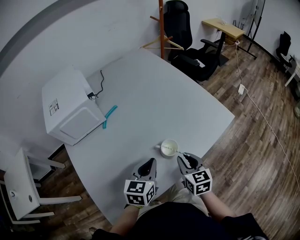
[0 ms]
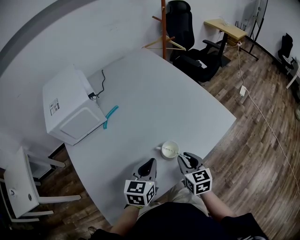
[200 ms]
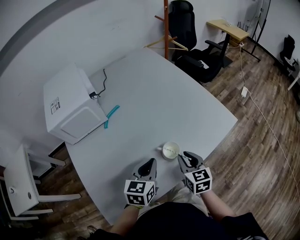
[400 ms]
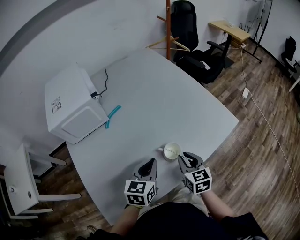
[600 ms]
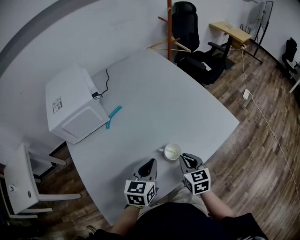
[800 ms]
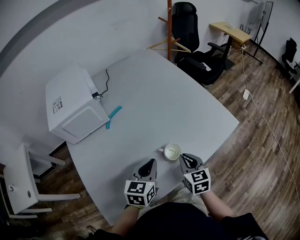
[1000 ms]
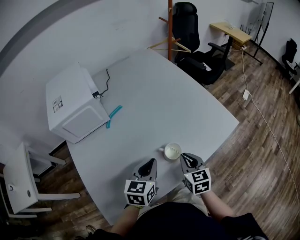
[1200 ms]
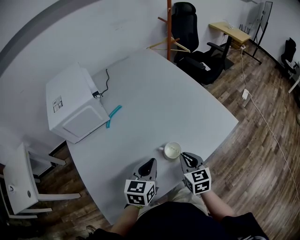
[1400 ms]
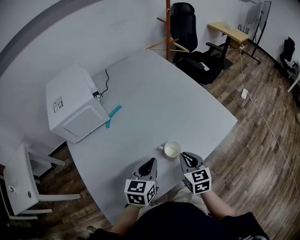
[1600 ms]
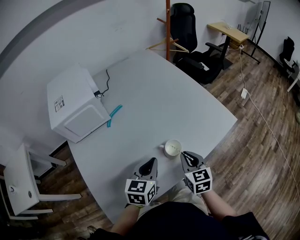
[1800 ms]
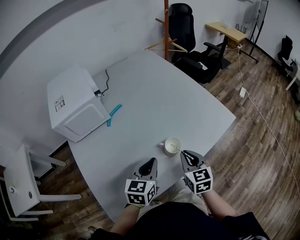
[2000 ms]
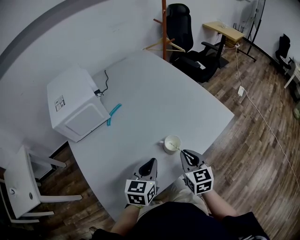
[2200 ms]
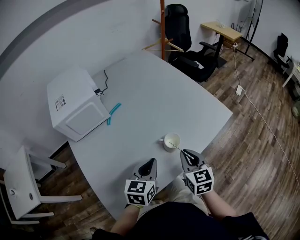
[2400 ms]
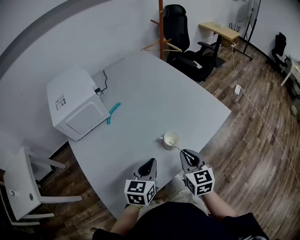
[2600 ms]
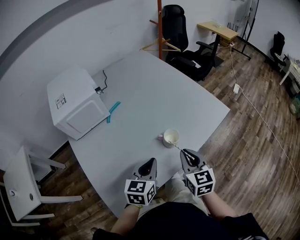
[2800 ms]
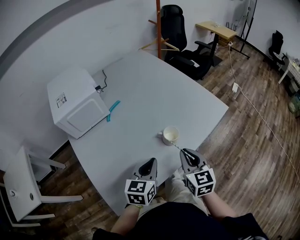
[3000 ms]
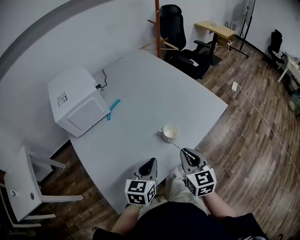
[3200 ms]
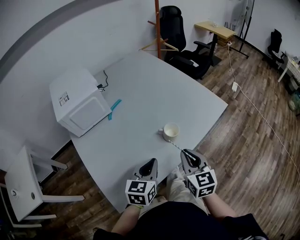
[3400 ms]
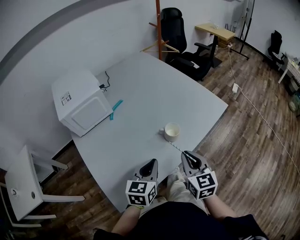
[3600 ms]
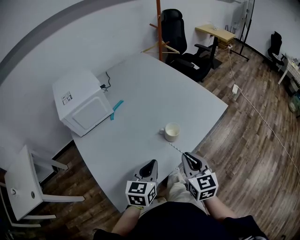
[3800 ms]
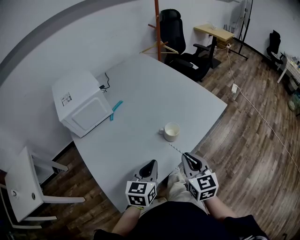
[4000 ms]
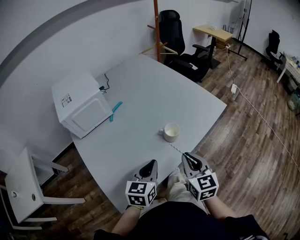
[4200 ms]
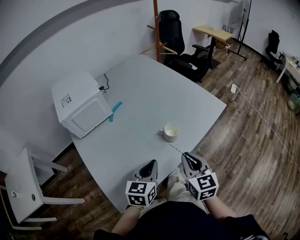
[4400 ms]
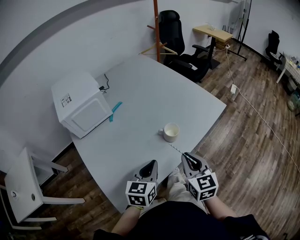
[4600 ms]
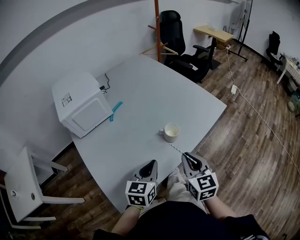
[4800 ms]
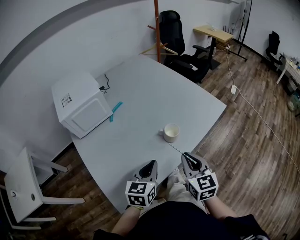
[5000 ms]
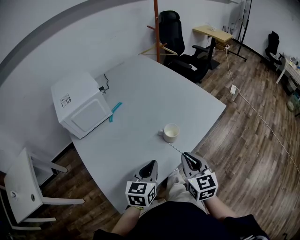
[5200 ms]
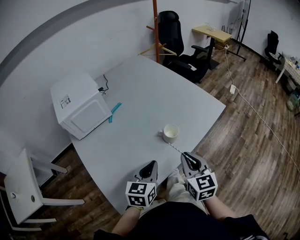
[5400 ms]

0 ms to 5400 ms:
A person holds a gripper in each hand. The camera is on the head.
0 ms to 1400 ms: The grippers move only a little.
1400 ms to 2800 ms: The left gripper shifts approximately 5 cm backward. Meanwhile the right gripper shifts approximately 10 cm backward and upward.
2800 ms to 4000 ms: Both grippers move backward, some 5 cm.
4000 ms to 5400 ms: The two grippers keep their place.

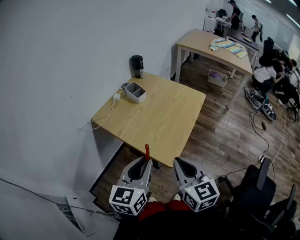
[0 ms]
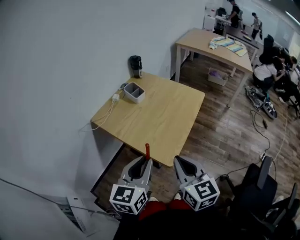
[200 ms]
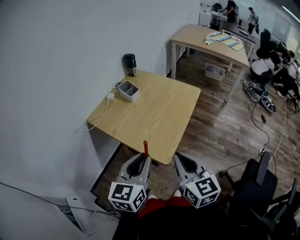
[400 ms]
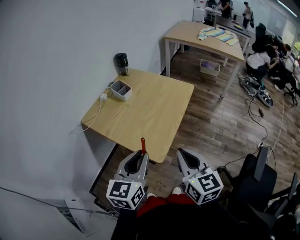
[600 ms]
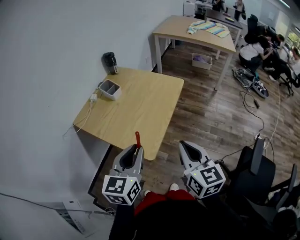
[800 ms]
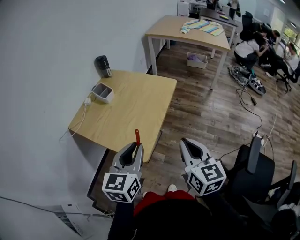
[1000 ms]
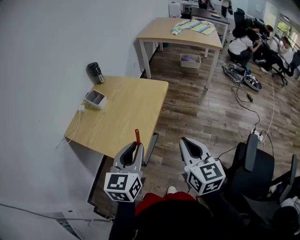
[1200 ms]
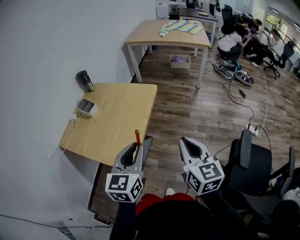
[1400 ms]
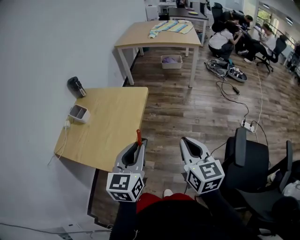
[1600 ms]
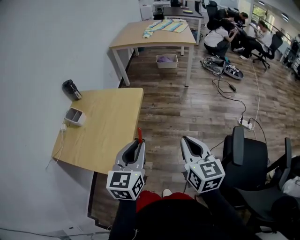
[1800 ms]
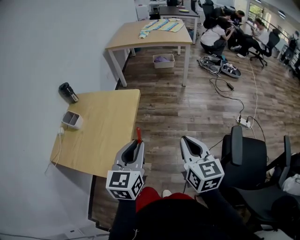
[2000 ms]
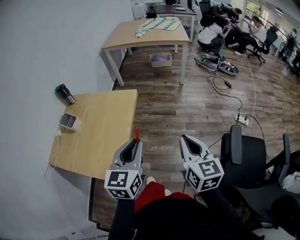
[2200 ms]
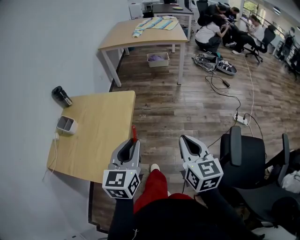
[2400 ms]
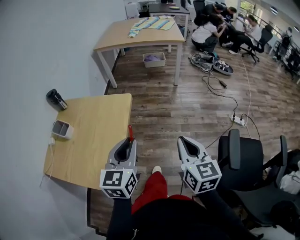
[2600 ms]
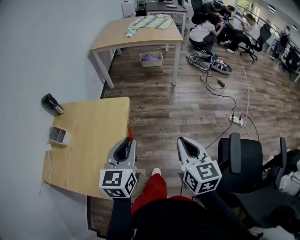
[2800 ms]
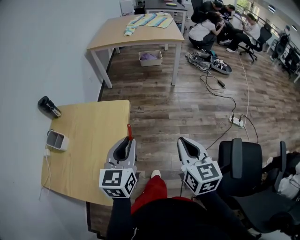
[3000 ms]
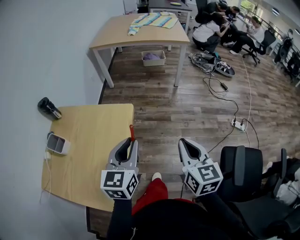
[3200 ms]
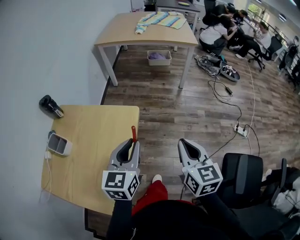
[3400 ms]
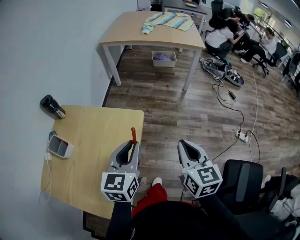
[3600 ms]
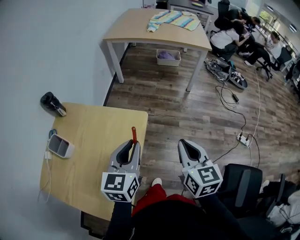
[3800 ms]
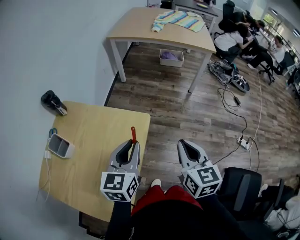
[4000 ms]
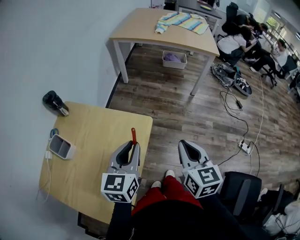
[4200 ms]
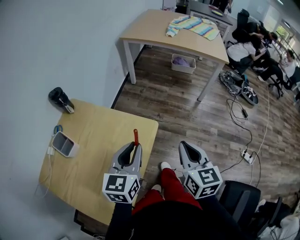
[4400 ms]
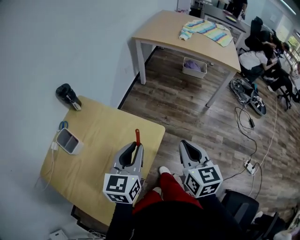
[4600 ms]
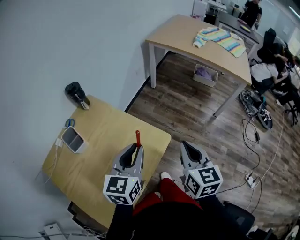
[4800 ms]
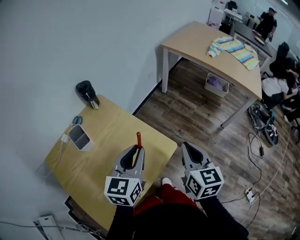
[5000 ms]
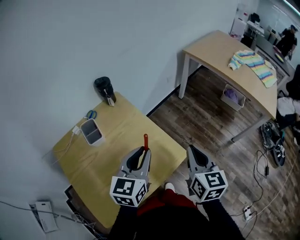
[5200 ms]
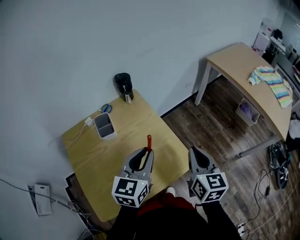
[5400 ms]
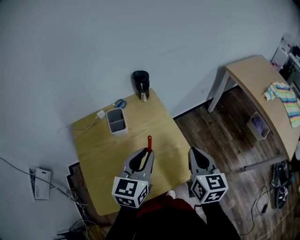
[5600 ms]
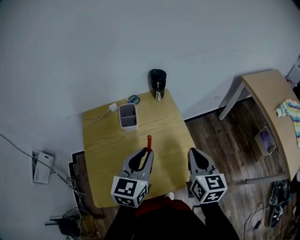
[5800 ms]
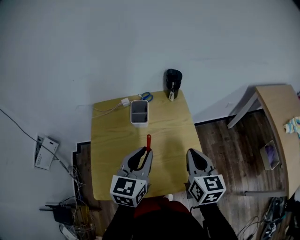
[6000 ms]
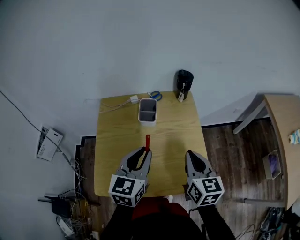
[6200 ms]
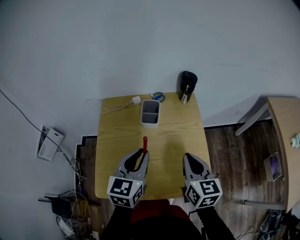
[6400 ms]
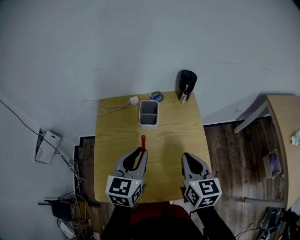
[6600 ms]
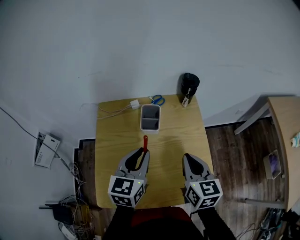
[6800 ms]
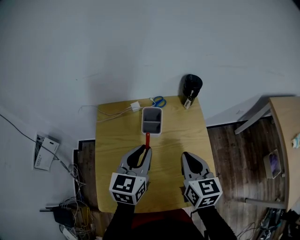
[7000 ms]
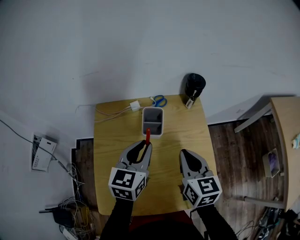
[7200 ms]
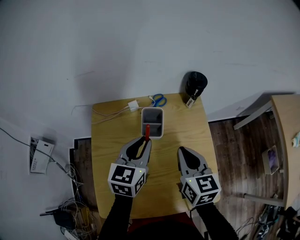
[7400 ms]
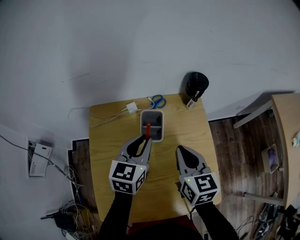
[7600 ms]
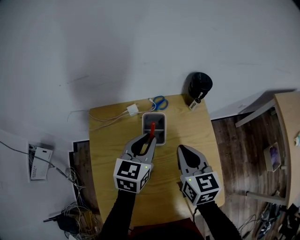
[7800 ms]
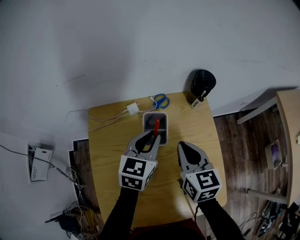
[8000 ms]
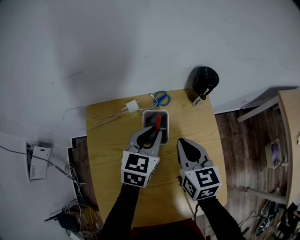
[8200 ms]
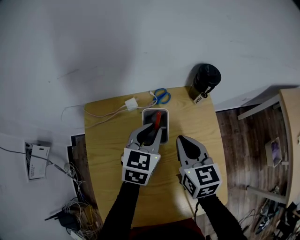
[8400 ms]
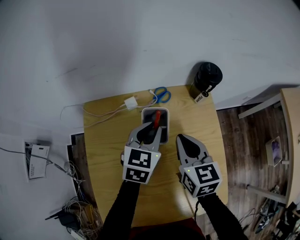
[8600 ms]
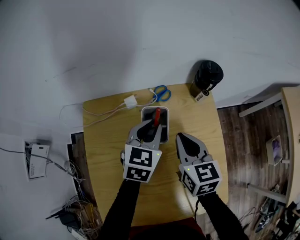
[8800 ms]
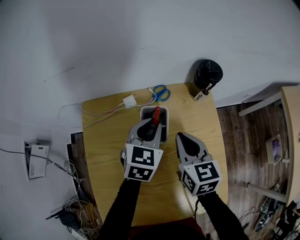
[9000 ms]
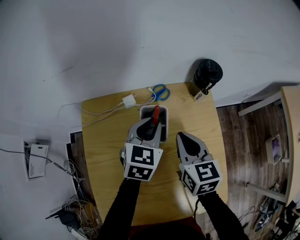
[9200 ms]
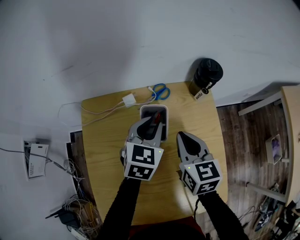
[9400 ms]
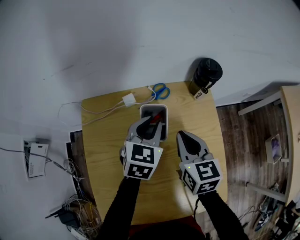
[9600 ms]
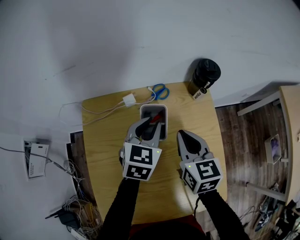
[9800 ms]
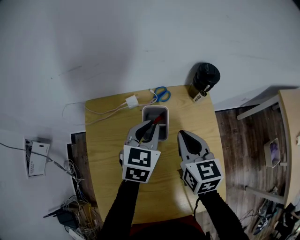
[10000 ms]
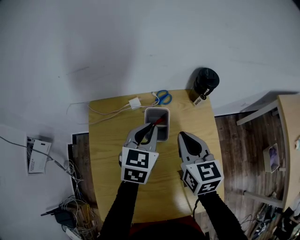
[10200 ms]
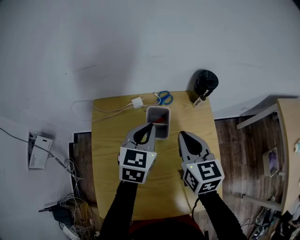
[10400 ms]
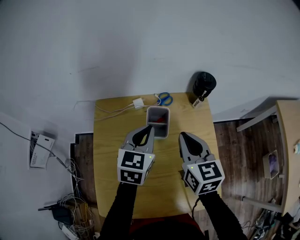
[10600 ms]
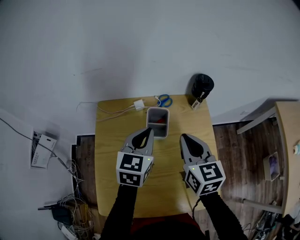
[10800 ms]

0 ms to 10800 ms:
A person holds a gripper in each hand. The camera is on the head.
0 ms to 1600 ms: The two grippers go roughly 25 cm to the right. The right gripper swivels about 30 degrees.
1600 ms to 3000 ms: Both grippers travel together forward, approximately 15 cm.
3000 ms to 4600 ms: The grippers both shift forward and to the left by about 25 cm.
4600 ms to 6200 ms: The right gripper moves about 25 cm, and changes its angle by about 60 degrees. The left gripper changes place by about 20 cm, and rotates approximately 60 degrees.
6200 ms to 7800 ms: The right gripper moves forward and to the left, approximately 20 cm. Meanwhile the left gripper heads forward and downward, covering about 20 cm.
7800 ms to 9200 ms: The left gripper is displaced forward by roughly 5 cm, while the right gripper changes place by roughly 5 cm.
9200 ms to 10800 ms: The left gripper goes some 10 cm upward and backward; the right gripper heads upward, covering some 10 cm.

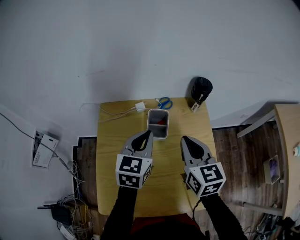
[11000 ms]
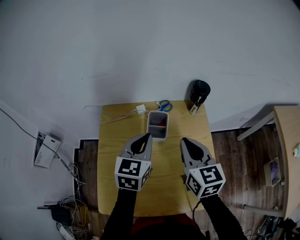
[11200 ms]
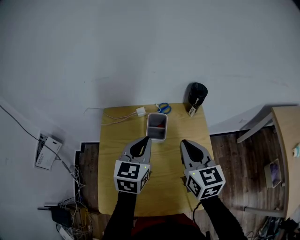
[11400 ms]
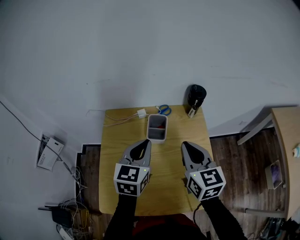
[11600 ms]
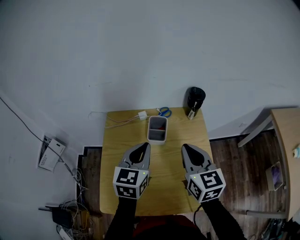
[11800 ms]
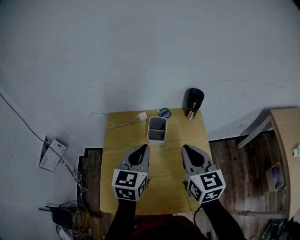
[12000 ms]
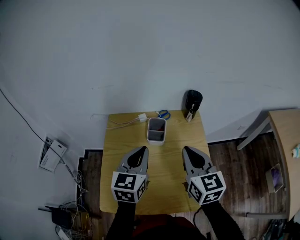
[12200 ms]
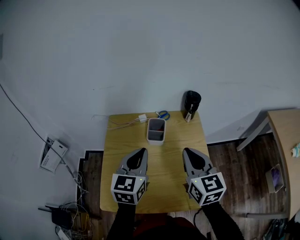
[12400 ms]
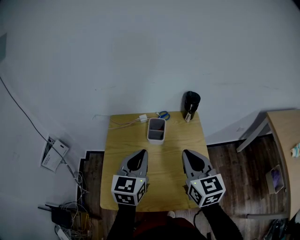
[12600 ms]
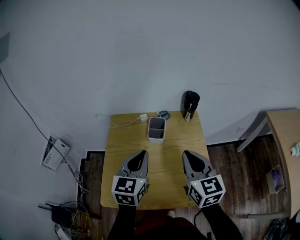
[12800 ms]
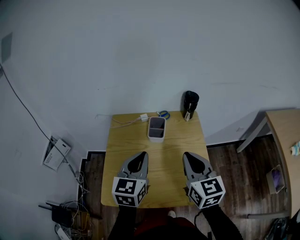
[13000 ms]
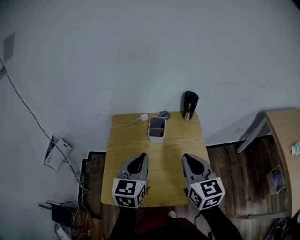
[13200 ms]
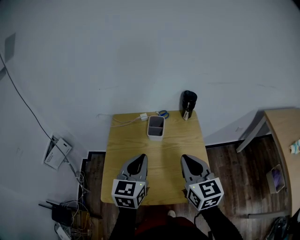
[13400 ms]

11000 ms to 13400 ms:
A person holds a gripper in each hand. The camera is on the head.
11000 ms to 12200 ms: Both grippers move backward and upward, approximately 10 cm.
12200 ms to 13400 ms: Both grippers move backward, roughly 10 cm.

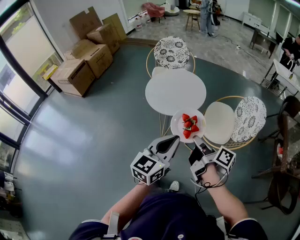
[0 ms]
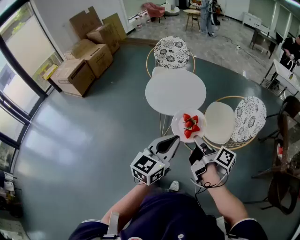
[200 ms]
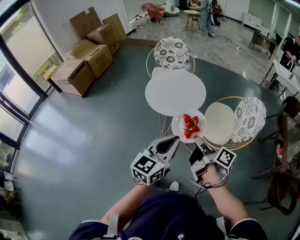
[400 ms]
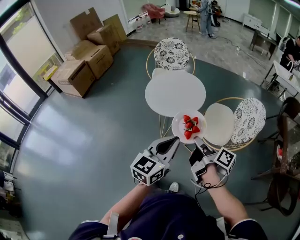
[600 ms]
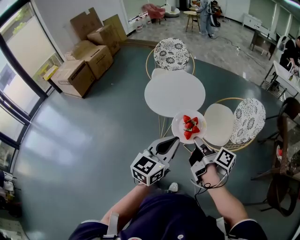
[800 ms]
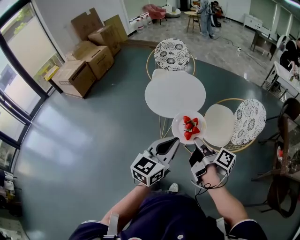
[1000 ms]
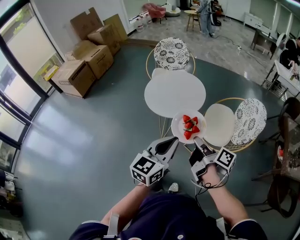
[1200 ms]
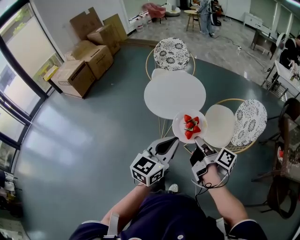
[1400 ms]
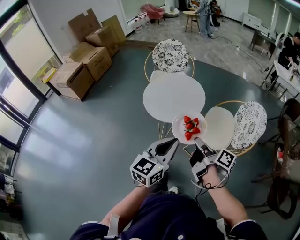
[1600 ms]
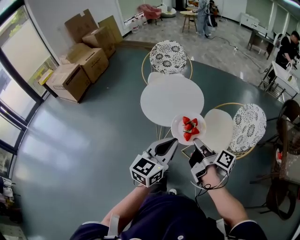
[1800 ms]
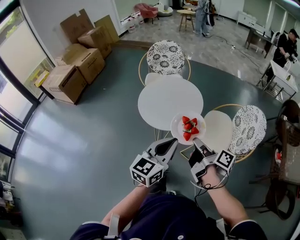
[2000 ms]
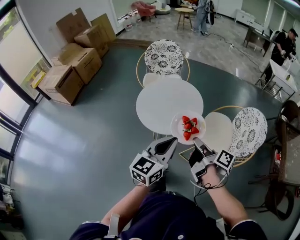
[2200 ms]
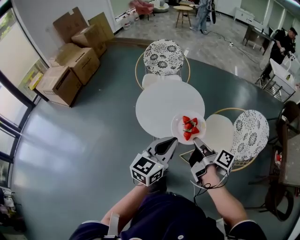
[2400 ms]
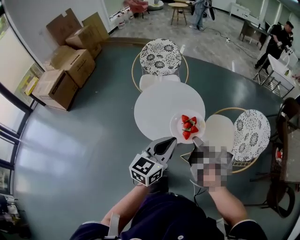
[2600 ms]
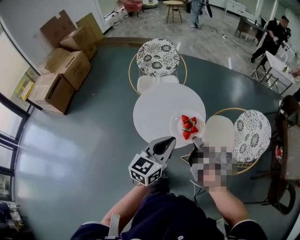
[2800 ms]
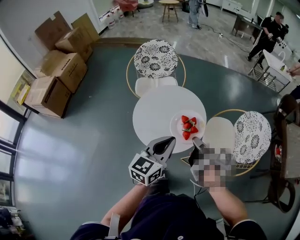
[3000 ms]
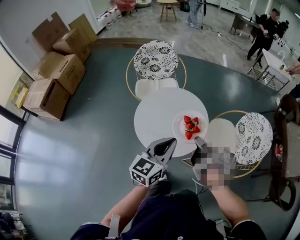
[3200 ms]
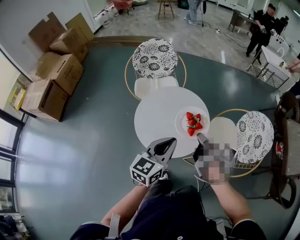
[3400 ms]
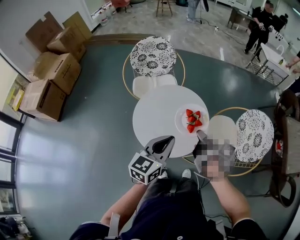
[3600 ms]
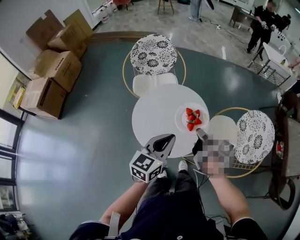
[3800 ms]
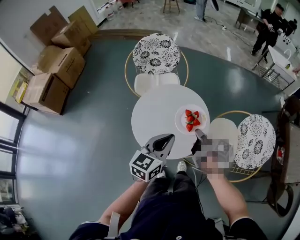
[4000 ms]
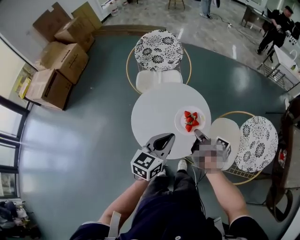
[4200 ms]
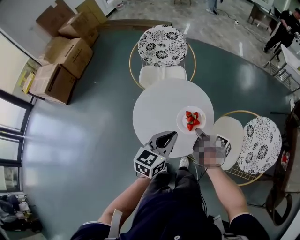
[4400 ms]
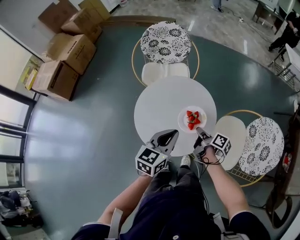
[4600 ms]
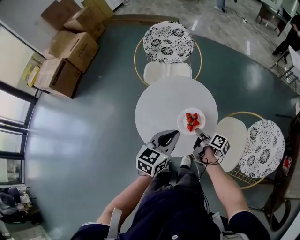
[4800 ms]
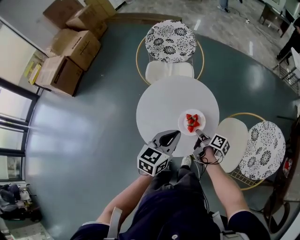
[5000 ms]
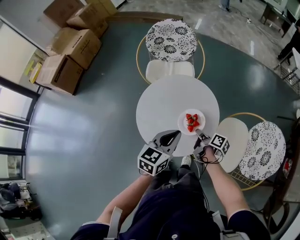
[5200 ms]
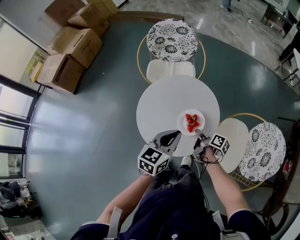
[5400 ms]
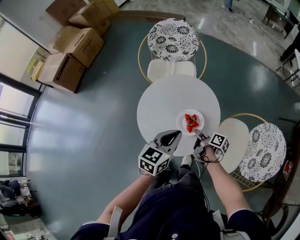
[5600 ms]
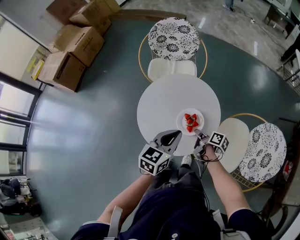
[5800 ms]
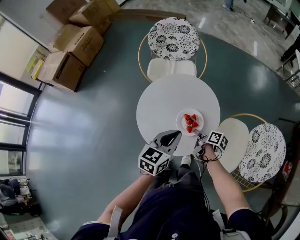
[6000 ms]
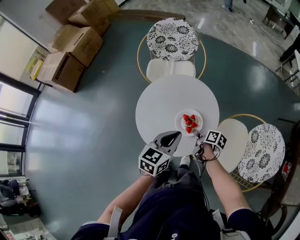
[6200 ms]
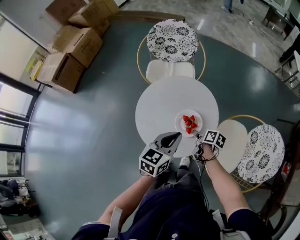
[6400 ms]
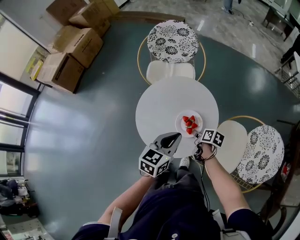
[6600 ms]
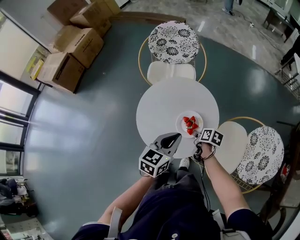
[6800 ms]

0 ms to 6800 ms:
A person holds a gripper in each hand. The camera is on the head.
0 ms to 1400 ms: There are only small adjustments of the grippers.
1400 ms to 2800 ms: Both grippers move forward, some 20 cm.
2800 ms to 4000 ms: The left gripper travels forward by about 10 cm; the right gripper is displaced forward and downward by roughly 15 cm.
4000 ms to 5400 ms: The right gripper goes approximately 15 cm downward. The left gripper travels downward by approximately 5 cm.
5400 ms to 6800 ms: The right gripper swivels approximately 30 degrees.
